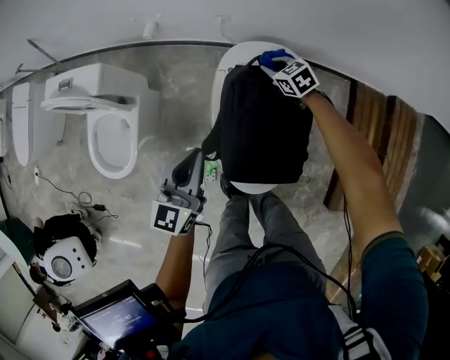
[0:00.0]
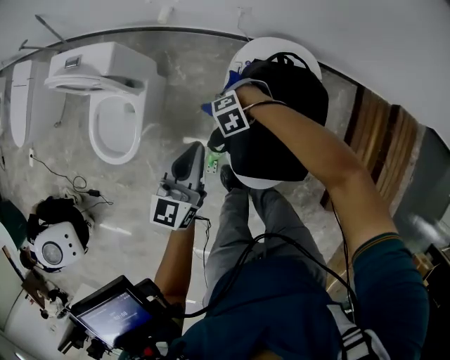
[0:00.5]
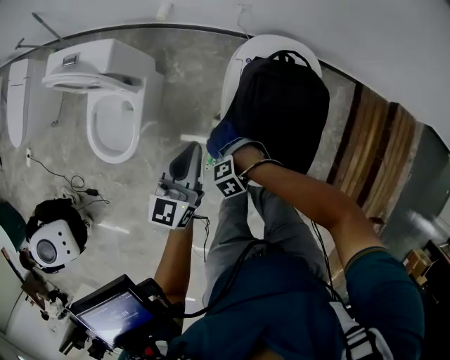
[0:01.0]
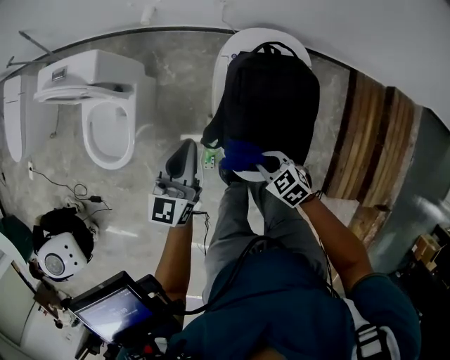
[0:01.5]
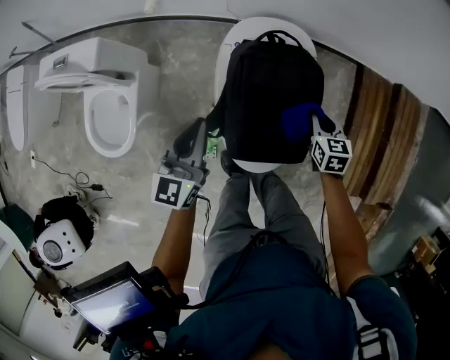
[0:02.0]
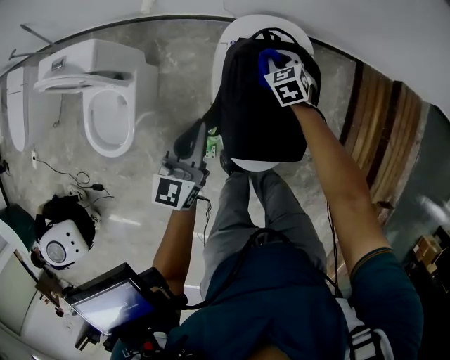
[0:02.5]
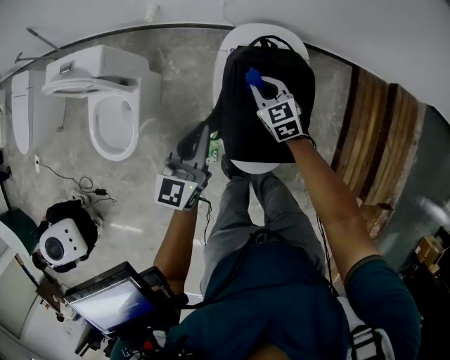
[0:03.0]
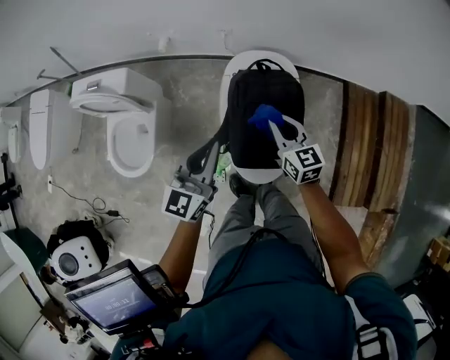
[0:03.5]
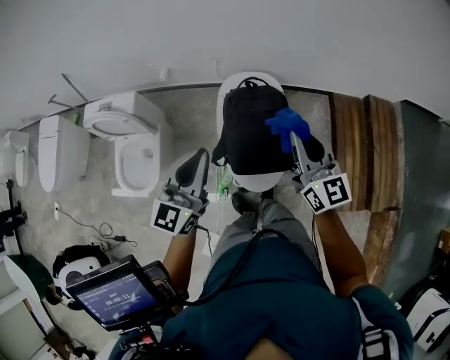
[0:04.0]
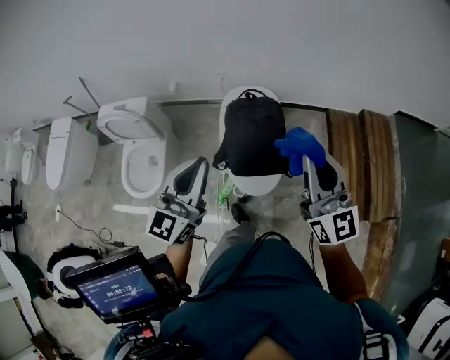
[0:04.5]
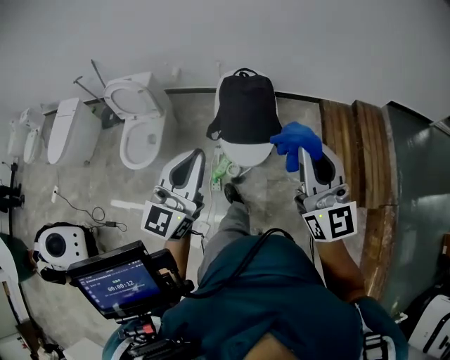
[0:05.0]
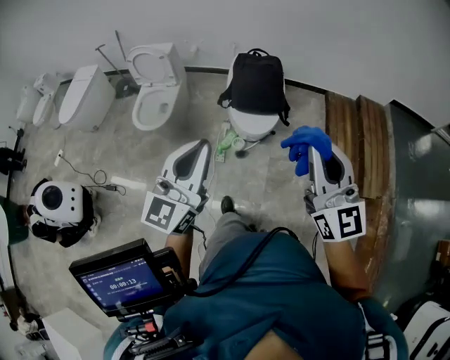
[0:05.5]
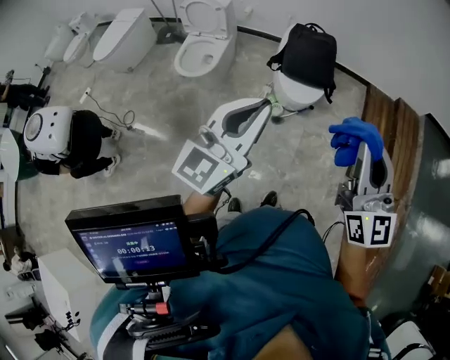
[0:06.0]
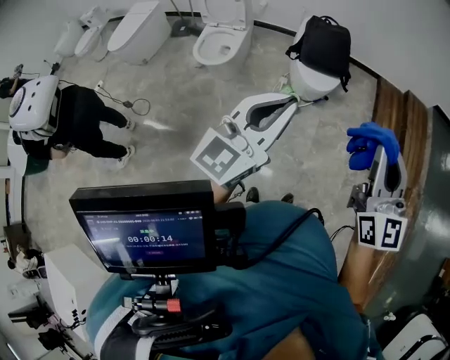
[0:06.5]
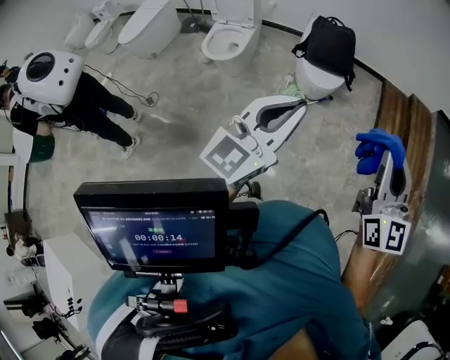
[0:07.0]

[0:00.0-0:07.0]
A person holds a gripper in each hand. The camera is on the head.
0:00.0 to 0:02.0: The right gripper turns by some 40 degrees.
0:02.0 to 0:03.5: The right gripper is displaced upward and to the left by some 20 cm, and swivels roughly 30 degrees. Meanwhile the left gripper travels upward by some 10 cm.
0:03.5 to 0:05.0: The two grippers go roughly 50 cm backward and upward. The right gripper tilts its fingers about 30 degrees upward.
0:05.0 to 0:07.0: Both grippers move backward, about 40 cm.

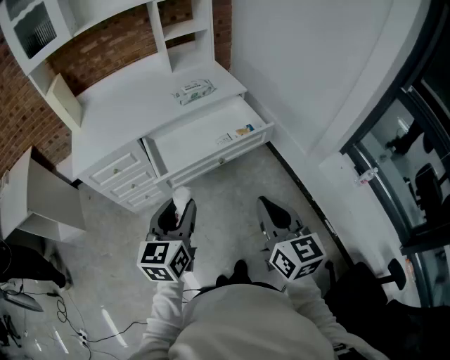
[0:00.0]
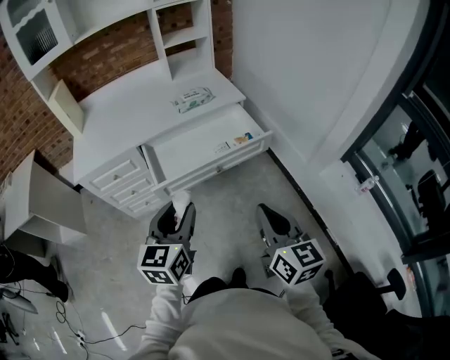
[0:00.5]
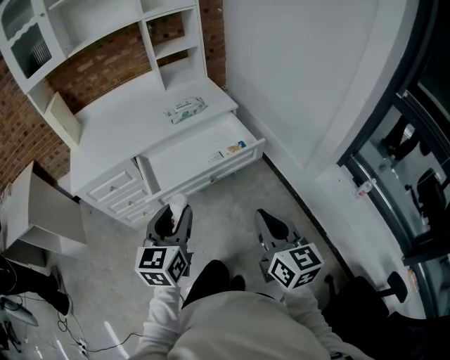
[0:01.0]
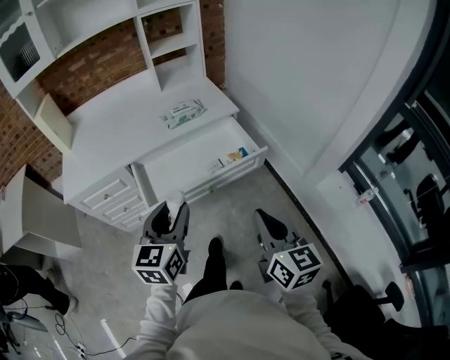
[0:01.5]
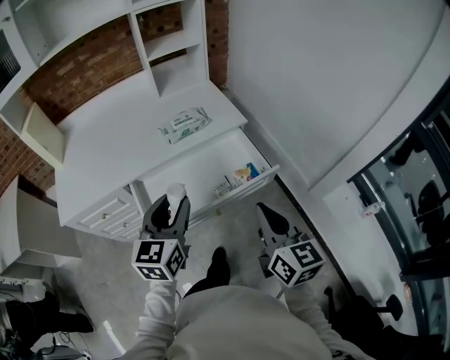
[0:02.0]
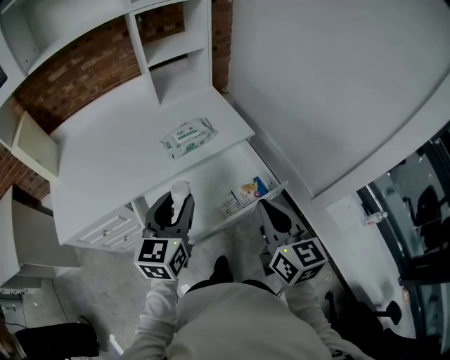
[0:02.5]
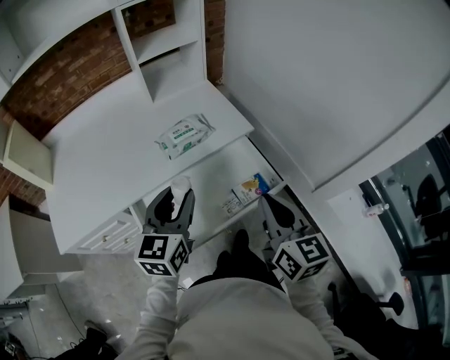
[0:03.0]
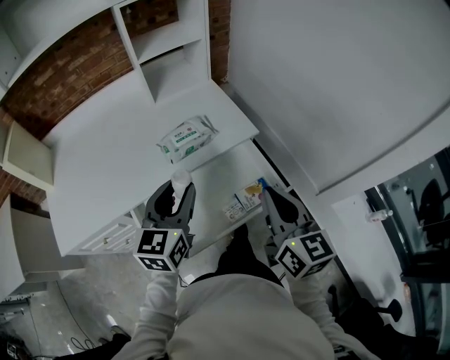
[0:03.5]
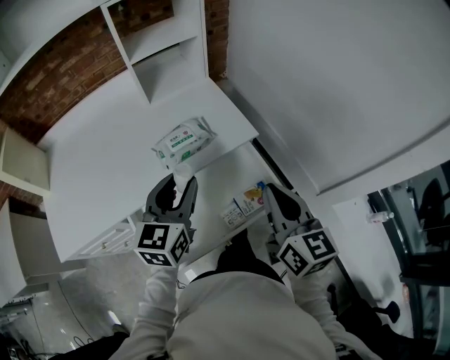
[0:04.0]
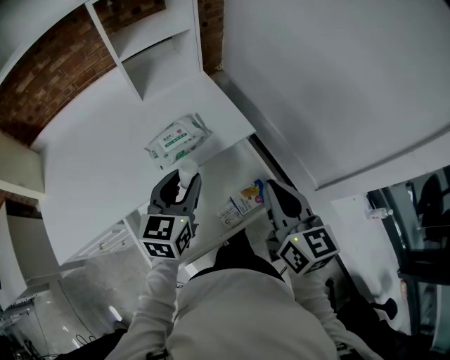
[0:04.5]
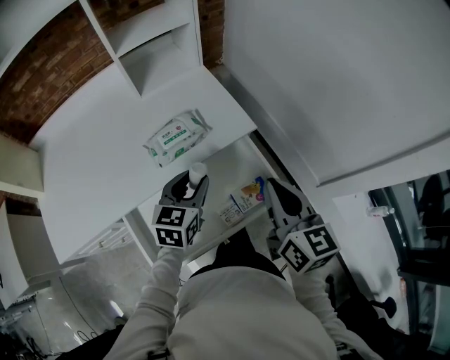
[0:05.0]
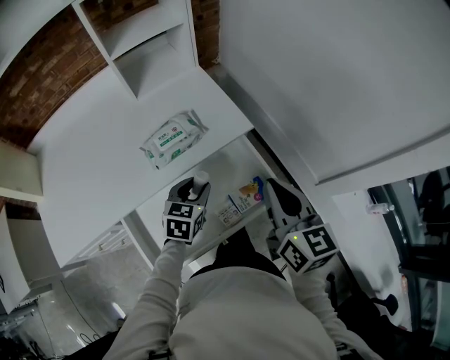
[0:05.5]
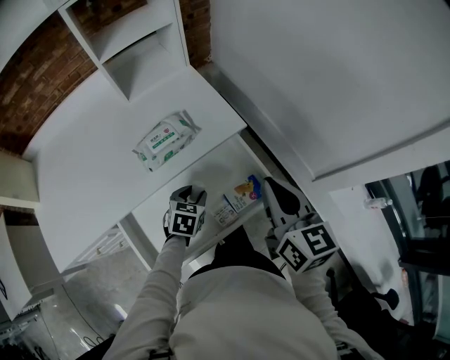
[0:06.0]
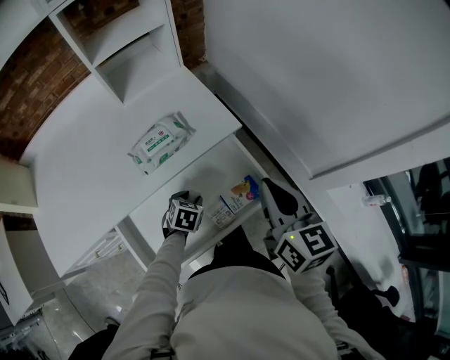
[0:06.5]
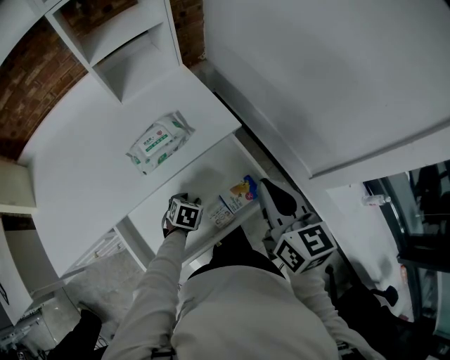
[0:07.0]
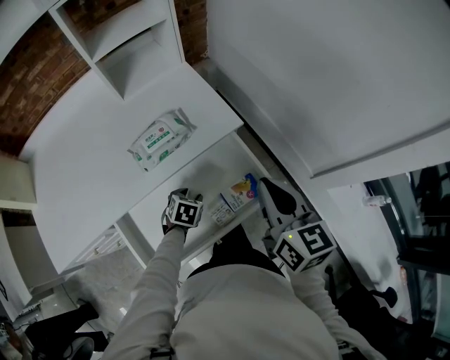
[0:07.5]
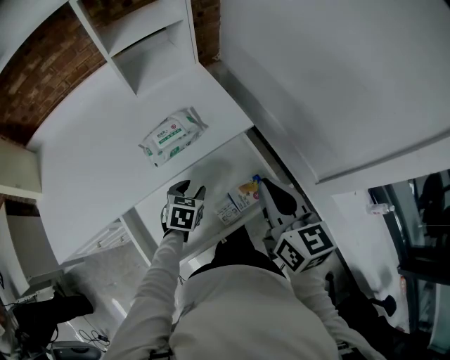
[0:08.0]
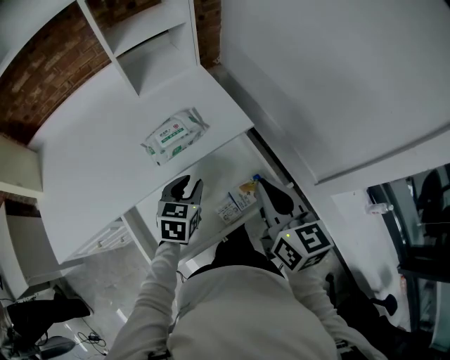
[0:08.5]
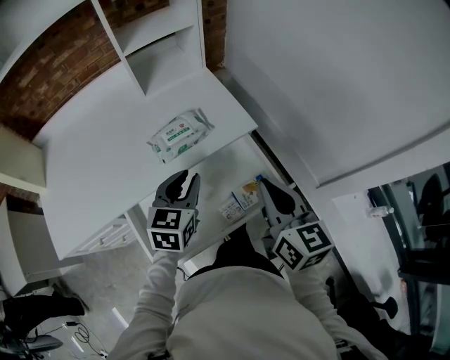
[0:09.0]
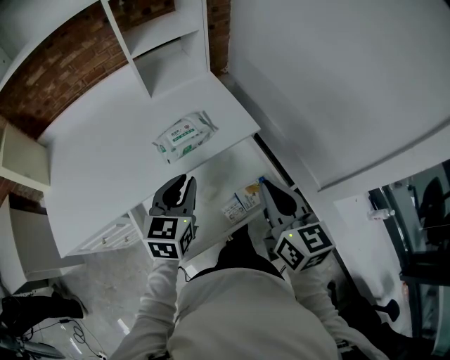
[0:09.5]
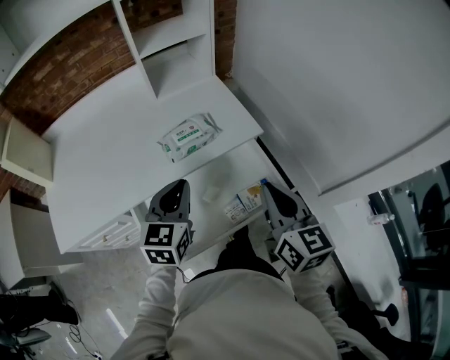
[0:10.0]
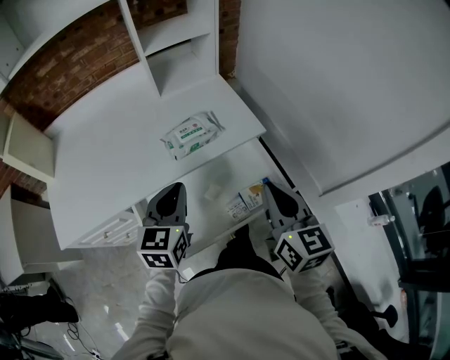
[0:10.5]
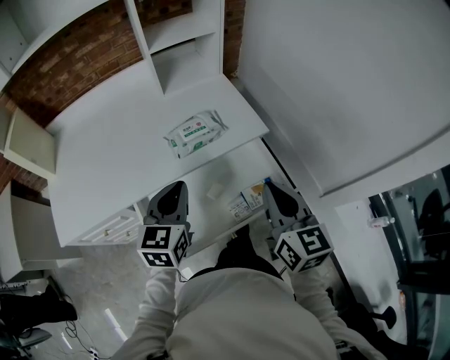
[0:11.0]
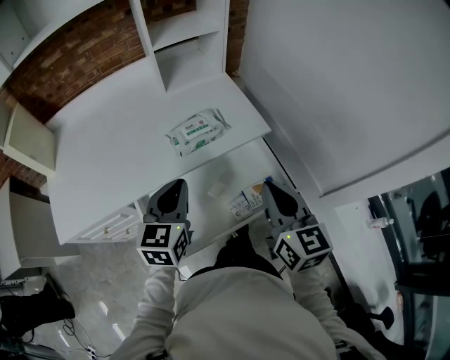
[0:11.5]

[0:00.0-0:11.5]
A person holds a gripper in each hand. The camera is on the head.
0:00.0 to 0:02.0: The grippers both shift forward by some 25 cm.
0:02.0 to 0:04.0: The grippers both shift forward by roughly 20 cm.
0:04.0 to 0:06.0: The right gripper shifts by some 5 cm. Meanwhile the left gripper shifts about 25 cm downward, and angles its fingers downward, by roughly 40 degrees.
0:06.0 to 0:07.5: The left gripper is displaced downward by approximately 5 cm.
0:07.5 to 0:09.5: The left gripper travels upward by roughly 25 cm, tips its fingers upward by roughly 40 degrees, and closes its fingers. The right gripper moves roughly 5 cm.
0:09.5 to 0:11.5: The left gripper goes approximately 5 cm to the left.

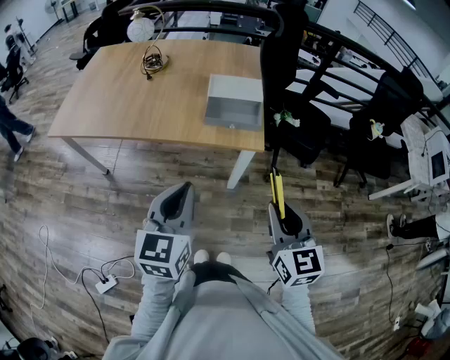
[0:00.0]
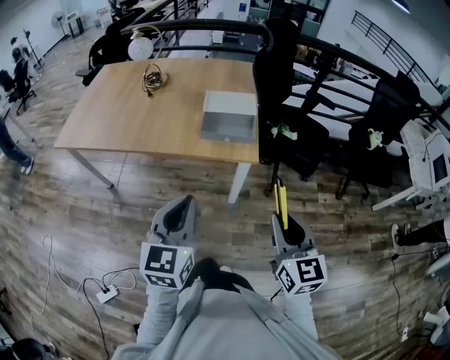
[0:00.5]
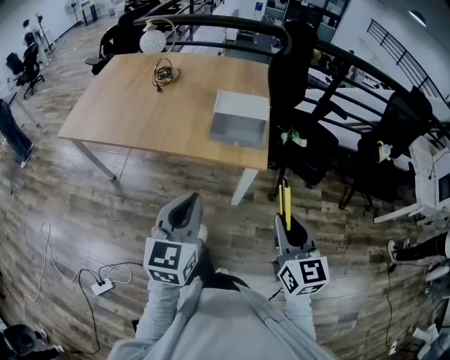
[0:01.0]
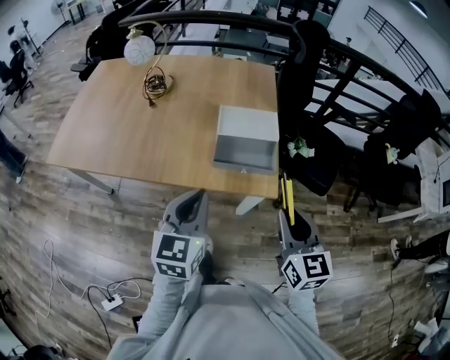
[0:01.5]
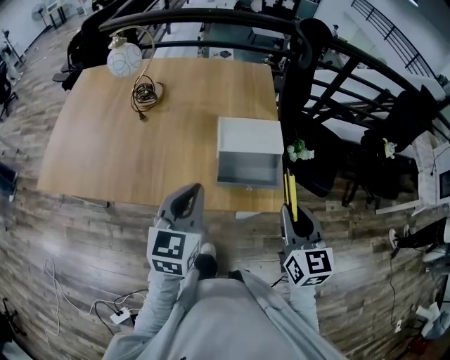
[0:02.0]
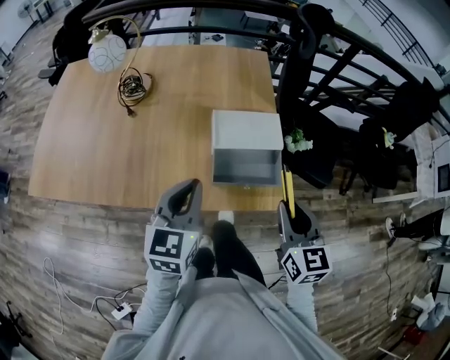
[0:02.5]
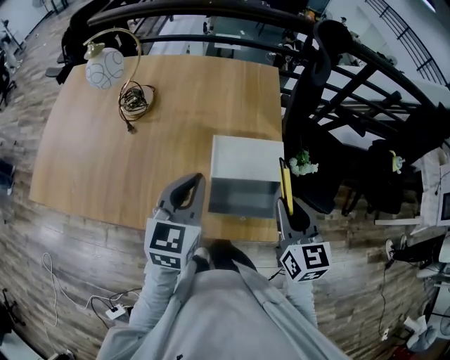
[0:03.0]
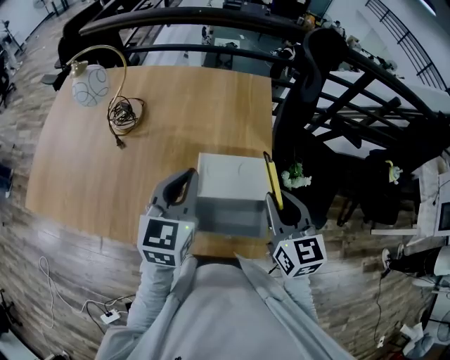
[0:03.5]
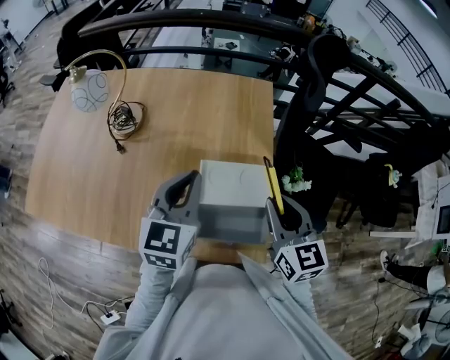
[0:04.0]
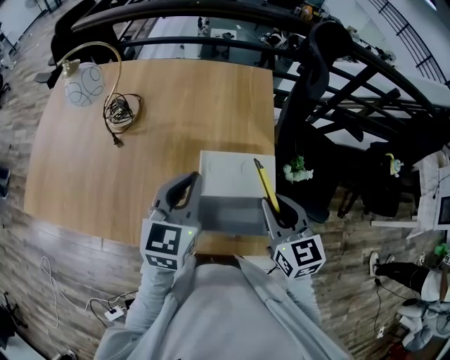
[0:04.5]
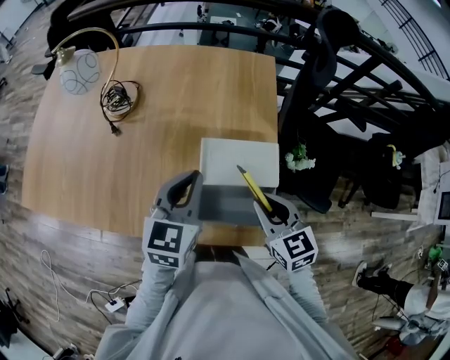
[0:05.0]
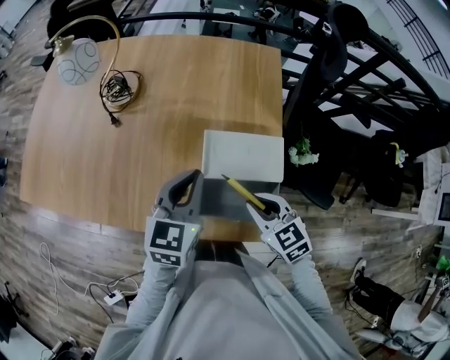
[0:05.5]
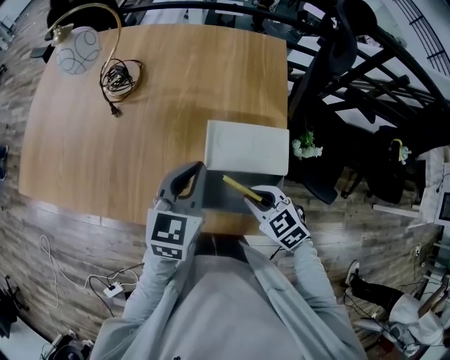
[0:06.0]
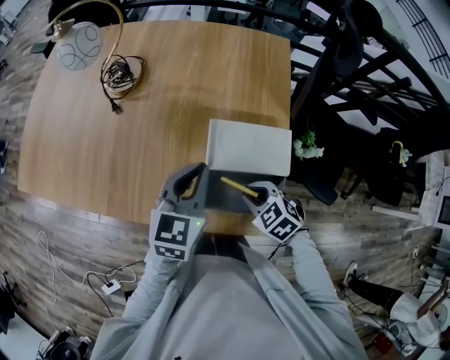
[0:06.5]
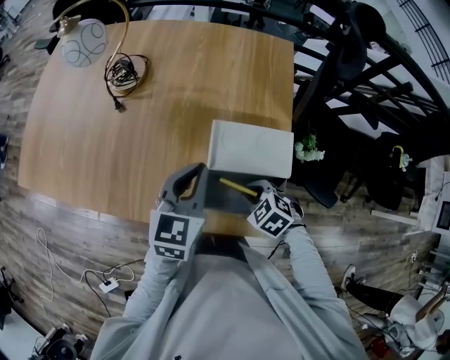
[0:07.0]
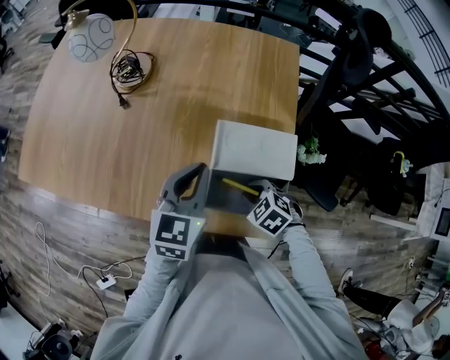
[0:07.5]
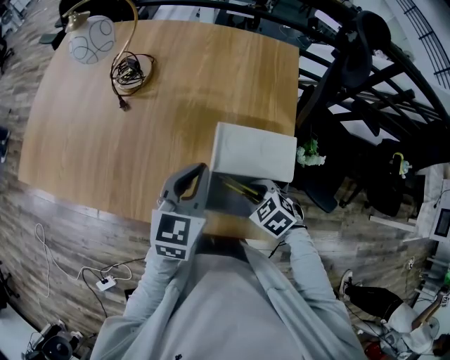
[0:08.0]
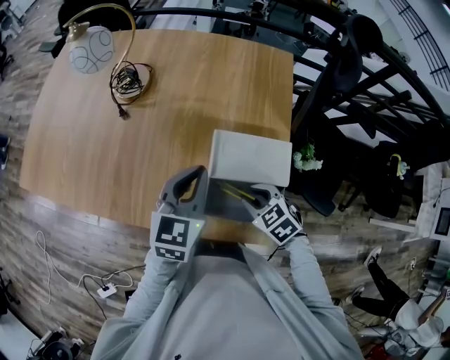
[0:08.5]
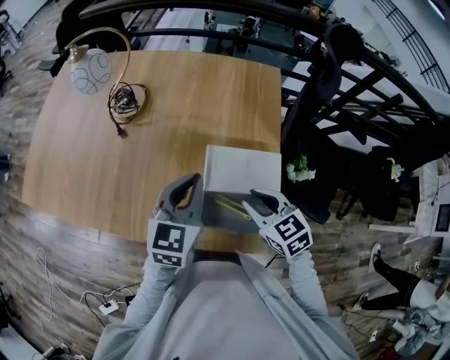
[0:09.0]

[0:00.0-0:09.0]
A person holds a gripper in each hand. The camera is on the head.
0:00.0 to 0:02.0: Both grippers move forward, some 25 cm.
0:02.0 to 0:04.5: Both grippers move forward, some 20 cm.
0:04.5 to 0:07.0: The left gripper heads downward, covering some 5 cm; the right gripper heads downward, covering about 20 cm, and tips its fingers downward by roughly 40 degrees.
0:07.0 to 0:09.0: The right gripper is displaced upward by some 10 cm, and rotates approximately 30 degrees.
